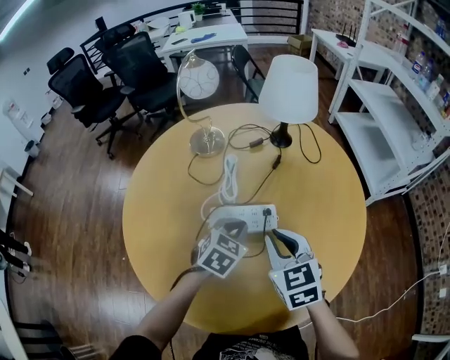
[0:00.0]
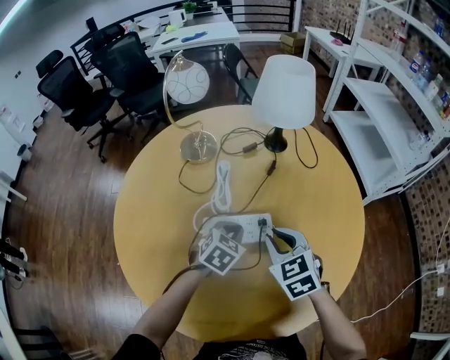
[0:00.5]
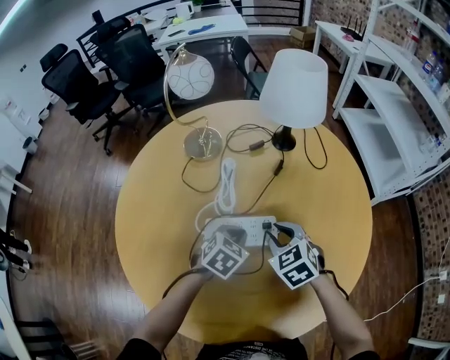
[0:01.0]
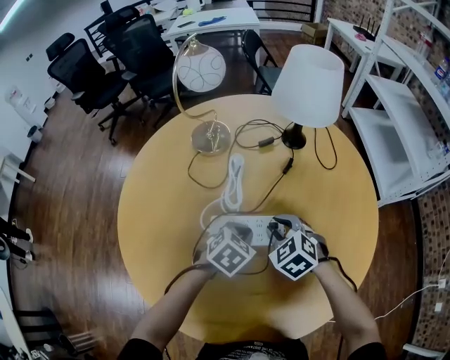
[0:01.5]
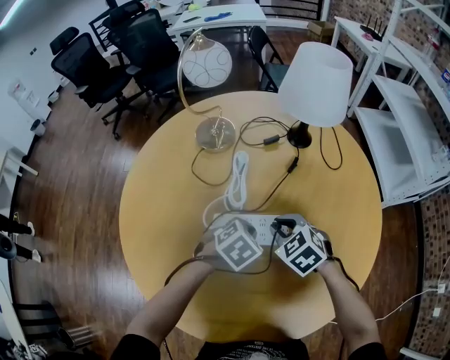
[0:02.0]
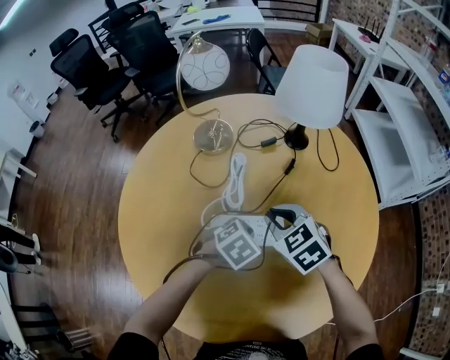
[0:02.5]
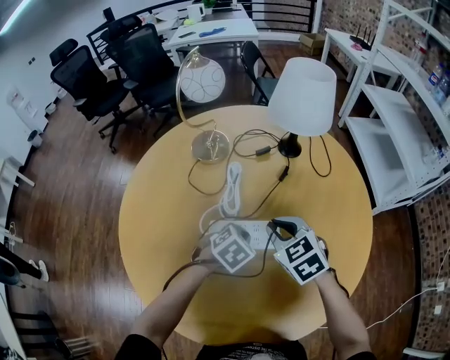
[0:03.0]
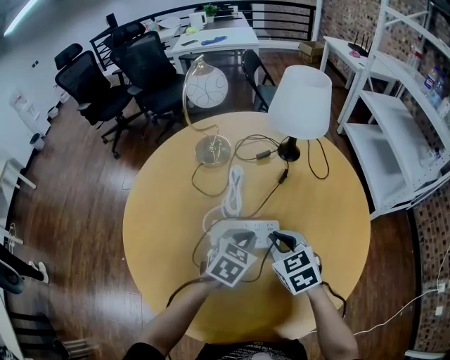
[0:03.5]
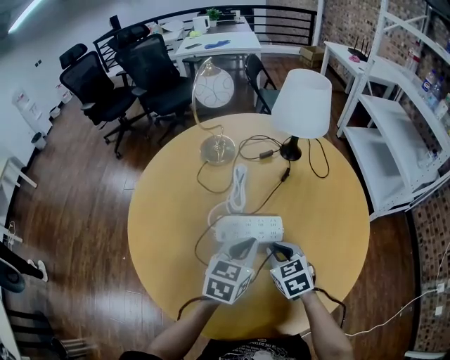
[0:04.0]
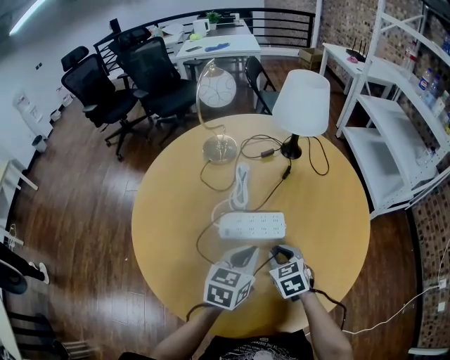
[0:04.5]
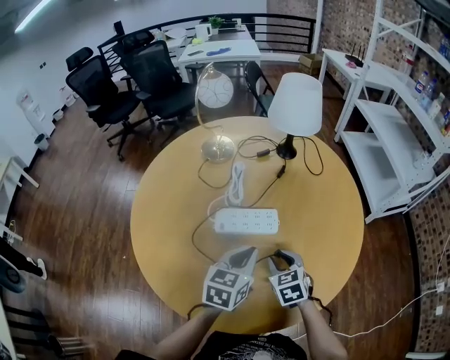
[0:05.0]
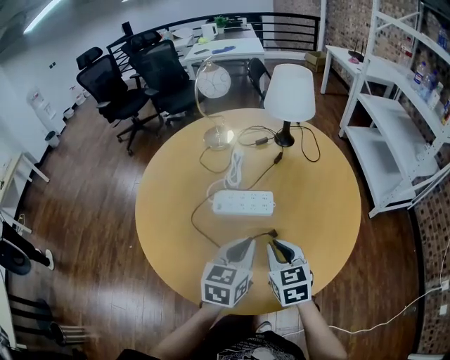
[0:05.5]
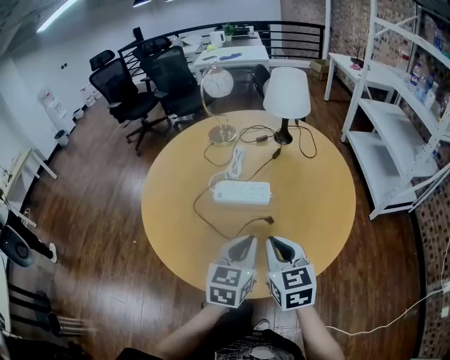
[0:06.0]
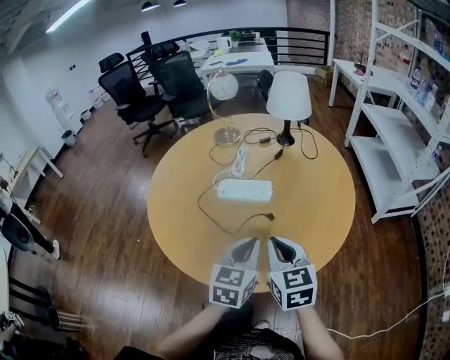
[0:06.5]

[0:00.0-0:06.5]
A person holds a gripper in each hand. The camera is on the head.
0:00.0 to 0:02.0: The left gripper goes some 5 cm downward, and rotates approximately 20 degrees. The right gripper moves downward and forward, some 15 cm, and changes its angle by some 30 degrees.
0:02.0 to 0:04.5: The right gripper heads backward, covering about 10 cm, and swivels roughly 20 degrees. Meanwhile the left gripper heads backward and upward, covering some 15 cm, and tips its fingers upward by about 30 degrees.
0:04.5 to 0:06.5: The right gripper is displaced backward and upward by approximately 25 cm, and changes its angle by roughly 30 degrees; the left gripper travels backward and to the right by about 20 cm.

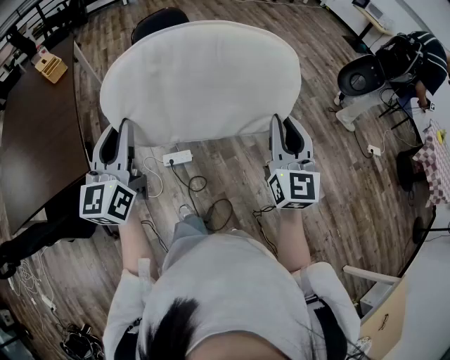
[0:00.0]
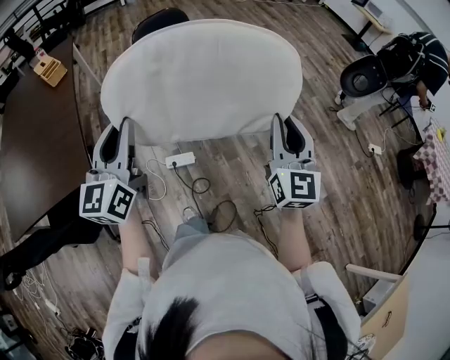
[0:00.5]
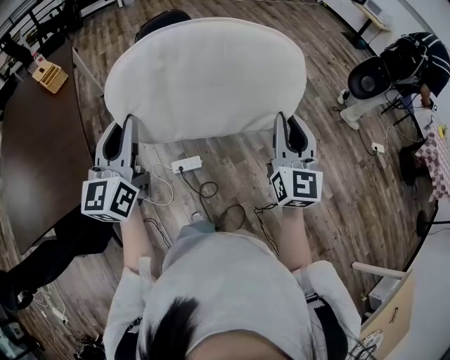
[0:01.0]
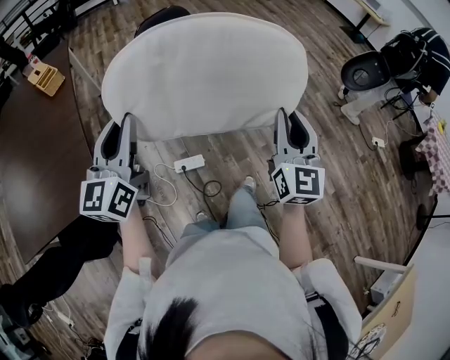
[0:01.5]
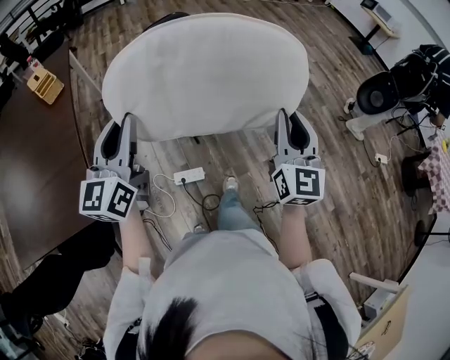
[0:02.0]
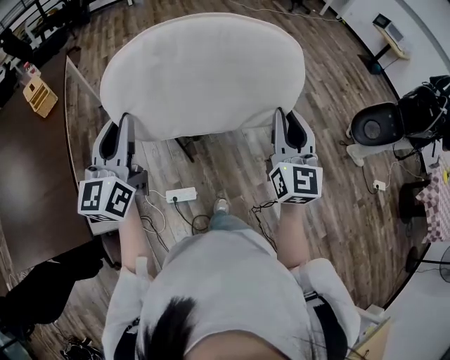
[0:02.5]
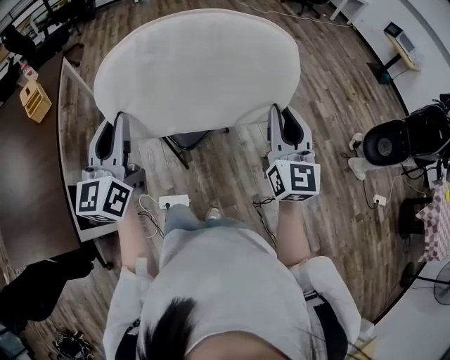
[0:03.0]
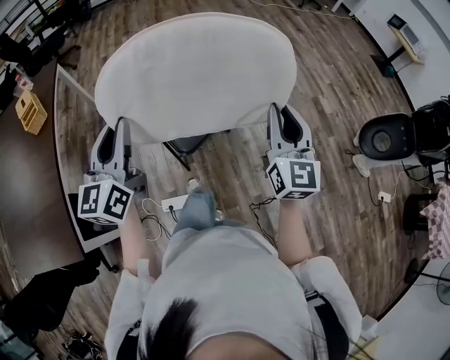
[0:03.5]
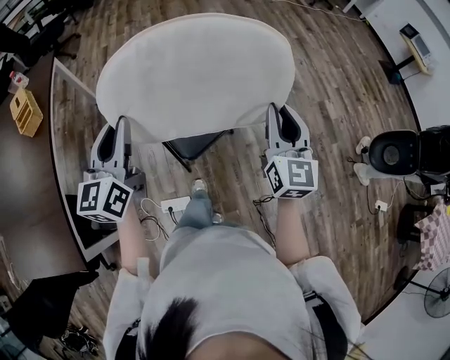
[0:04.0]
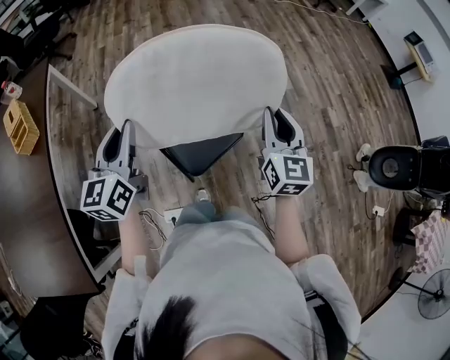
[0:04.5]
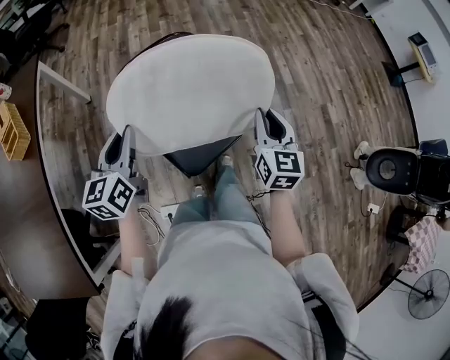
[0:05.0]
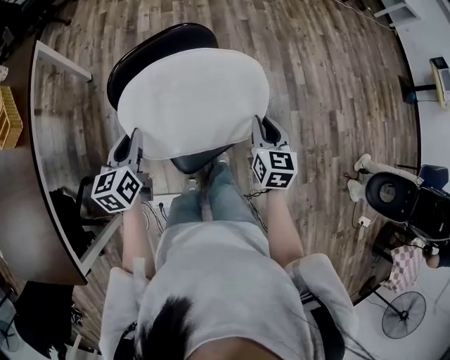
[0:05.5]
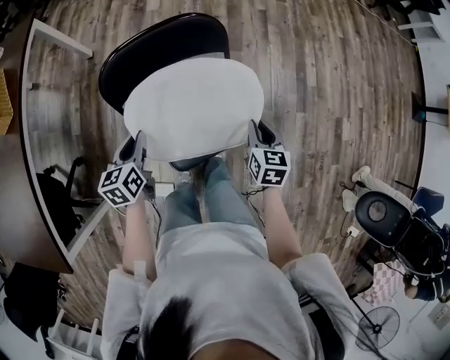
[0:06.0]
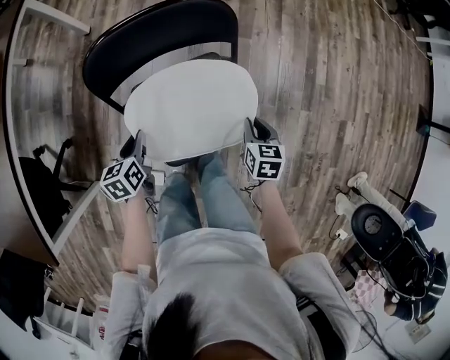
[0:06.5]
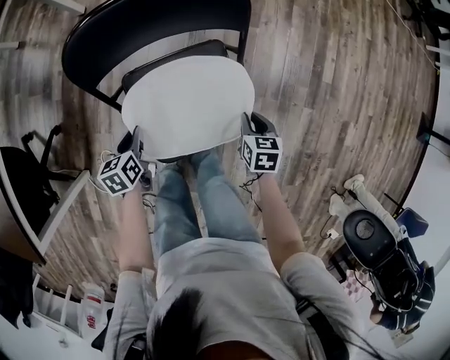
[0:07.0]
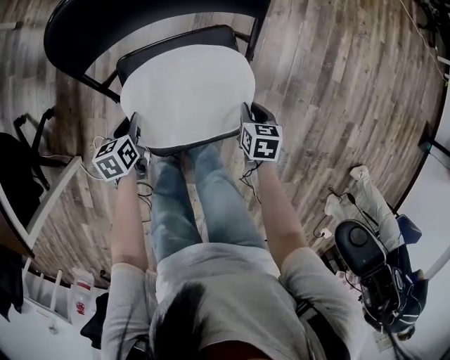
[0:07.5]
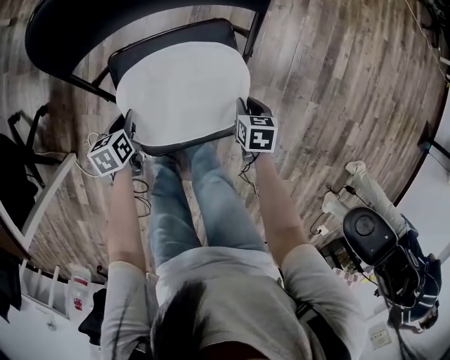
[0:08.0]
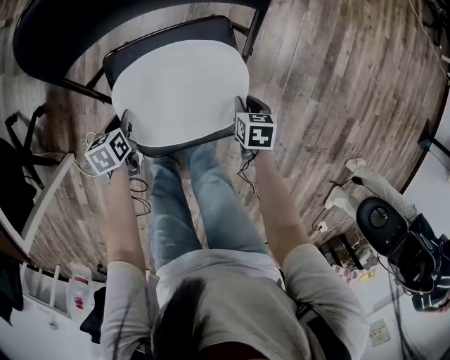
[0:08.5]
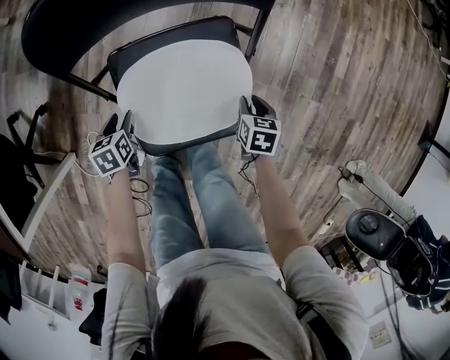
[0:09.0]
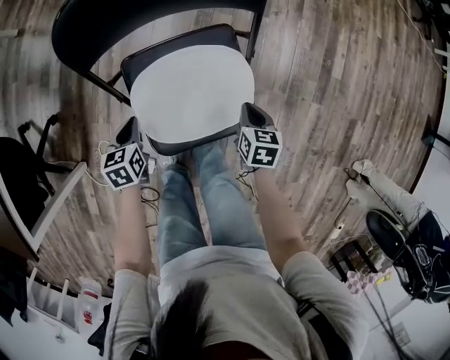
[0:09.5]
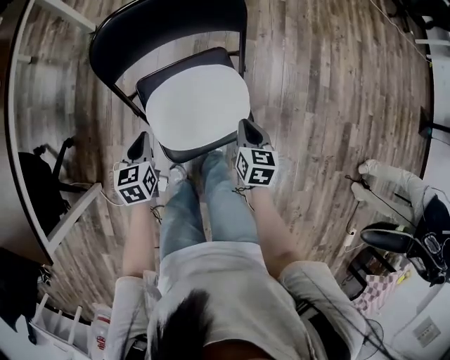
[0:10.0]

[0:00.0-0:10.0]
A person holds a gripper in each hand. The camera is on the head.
0:00.0 to 0:02.0: Both grippers travel together forward and to the left, some 20 cm.
0:02.0 to 0:04.0: The two grippers go some 35 cm forward.
0:04.0 to 0:06.0: Both grippers travel together downward and forward, some 40 cm. The left gripper tips its fingers downward by roughly 40 degrees; the right gripper tips its fingers downward by approximately 40 degrees.
0:06.0 to 0:08.0: Both grippers travel together downward, roughly 30 cm. The right gripper turns by about 30 degrees, while the left gripper changes its angle by about 30 degrees.
0:08.0 to 0:10.0: The grippers both shift upward by about 20 cm. The right gripper rotates approximately 30 degrees, while the left gripper changes its angle by roughly 30 degrees, and opens, then closes once more.

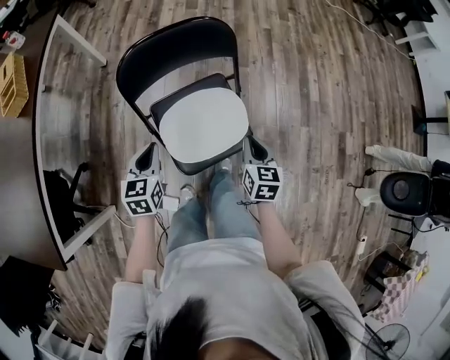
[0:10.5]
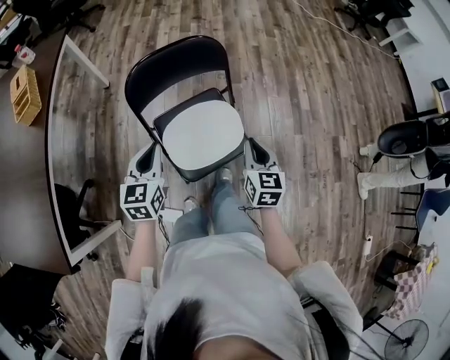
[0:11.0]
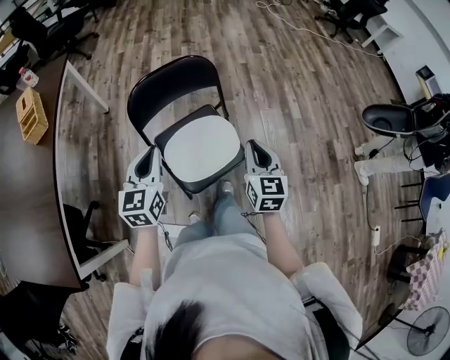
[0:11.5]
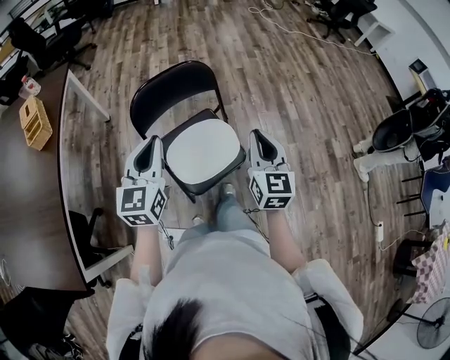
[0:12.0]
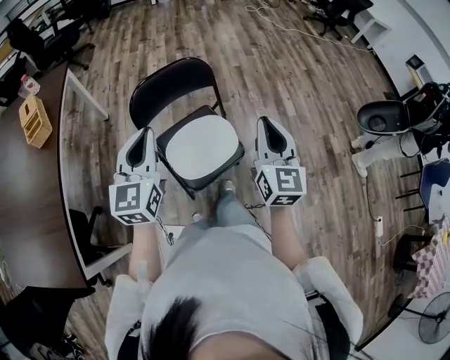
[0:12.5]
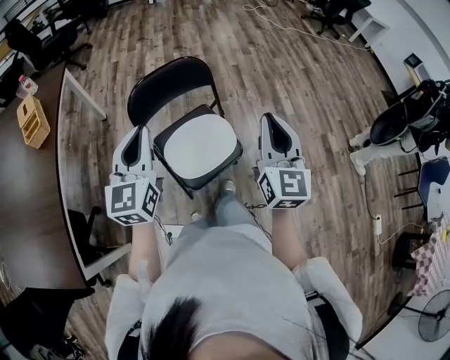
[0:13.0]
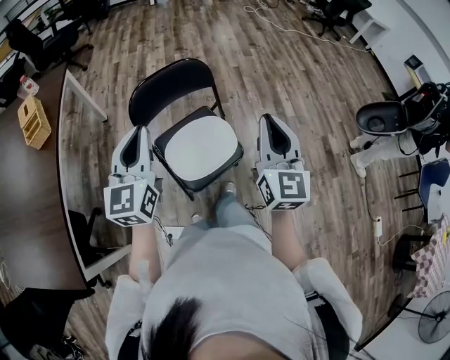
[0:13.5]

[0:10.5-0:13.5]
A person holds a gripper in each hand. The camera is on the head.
0:10.5 to 0:12.0: Both grippers move upward, about 25 cm. The left gripper turns by approximately 30 degrees. Meanwhile the right gripper turns by about 30 degrees.
0:12.0 to 0:13.5: The left gripper is displaced upward by approximately 5 cm; the right gripper goes roughly 10 cm upward.

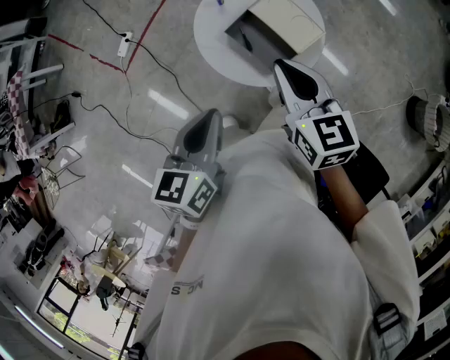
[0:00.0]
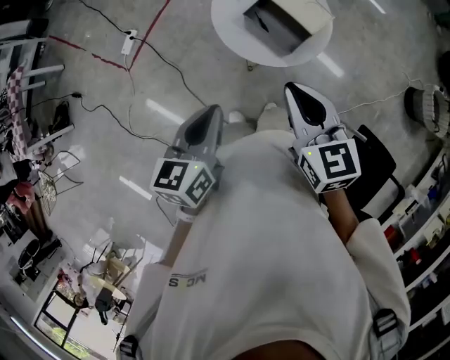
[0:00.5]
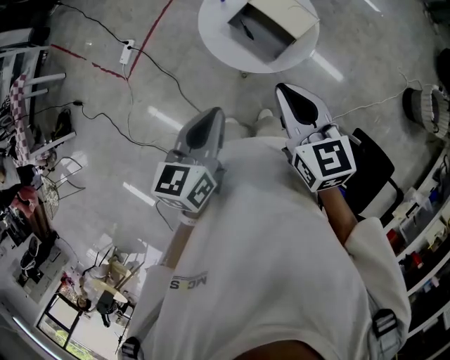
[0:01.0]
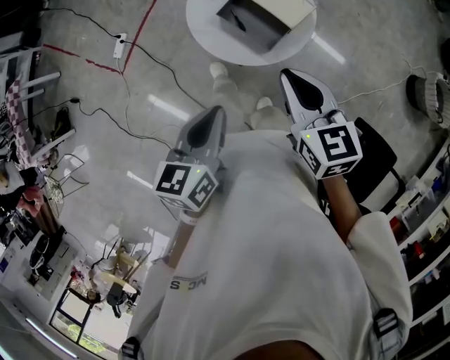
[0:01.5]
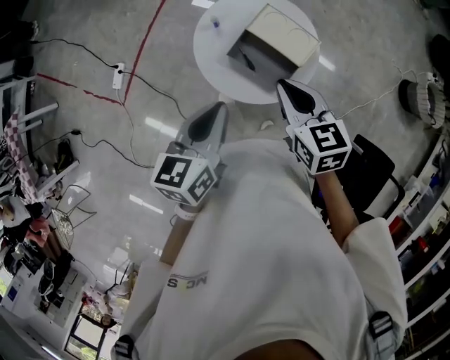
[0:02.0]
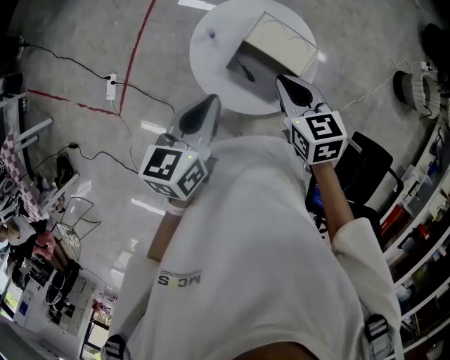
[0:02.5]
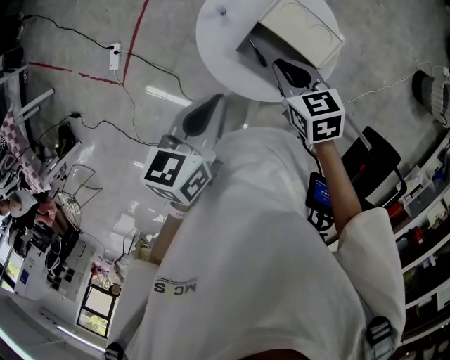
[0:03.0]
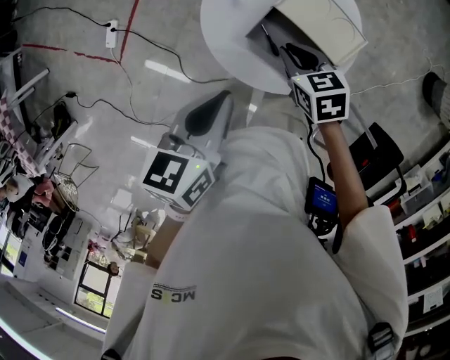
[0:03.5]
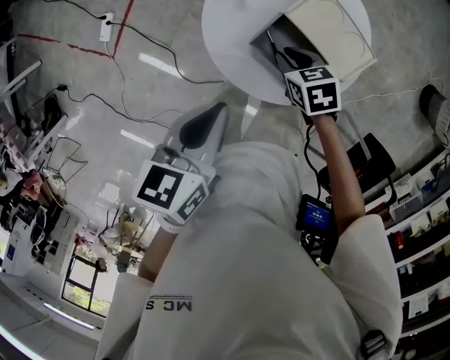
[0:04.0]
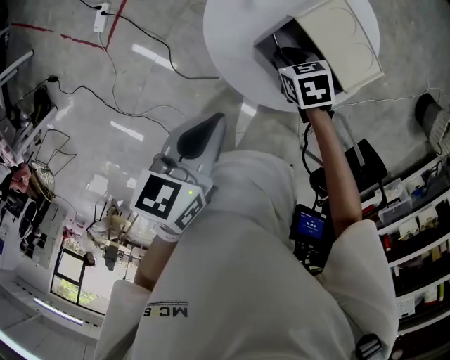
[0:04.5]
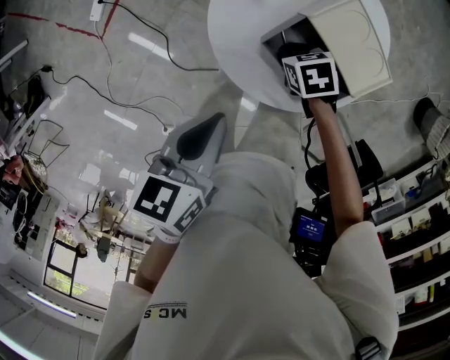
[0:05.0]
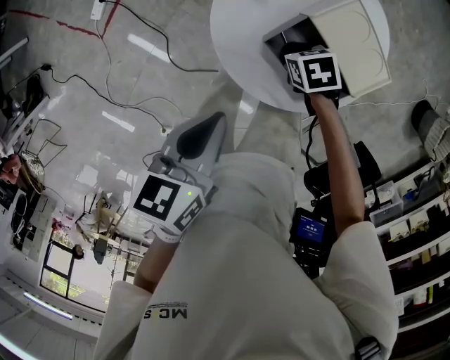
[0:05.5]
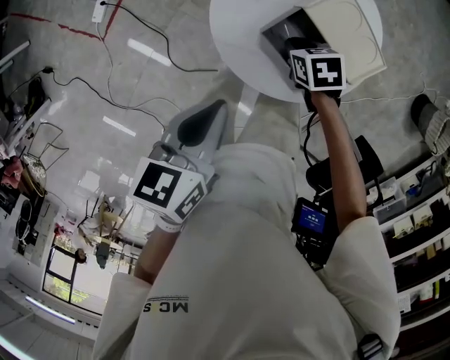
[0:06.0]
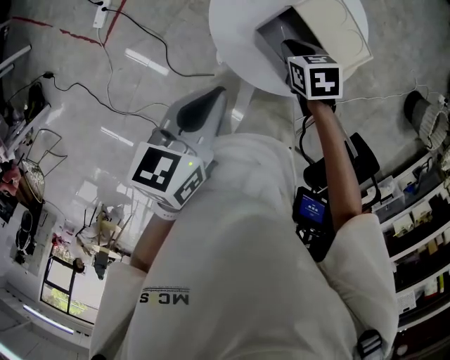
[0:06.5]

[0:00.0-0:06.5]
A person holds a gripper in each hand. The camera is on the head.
0:00.0 to 0:02.0: The right gripper moves about 15 cm backward and comes back; the left gripper goes some 10 cm forward.
0:02.0 to 0:04.5: The right gripper heads downward, covering about 35 cm, and turns by about 40 degrees; the left gripper shifts approximately 20 cm downward and forward, and swivels approximately 20 degrees.
0:04.5 to 0:06.5: The right gripper moves upward, approximately 5 cm.
